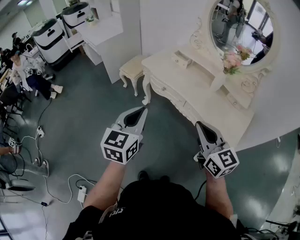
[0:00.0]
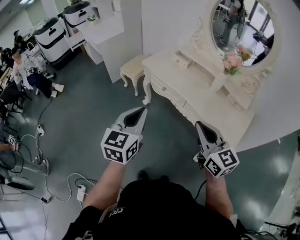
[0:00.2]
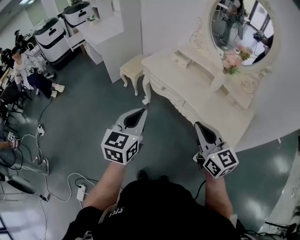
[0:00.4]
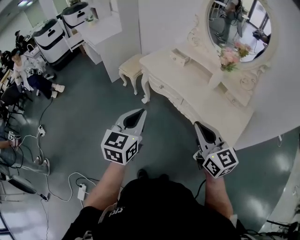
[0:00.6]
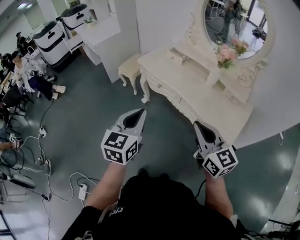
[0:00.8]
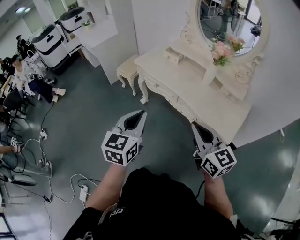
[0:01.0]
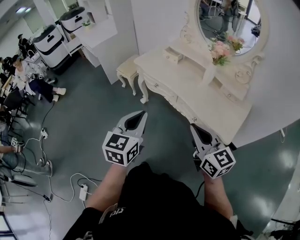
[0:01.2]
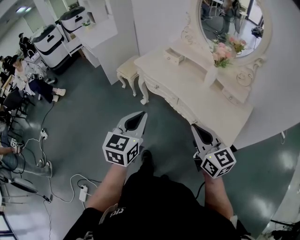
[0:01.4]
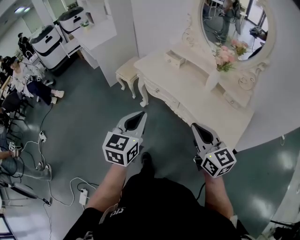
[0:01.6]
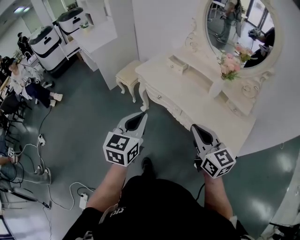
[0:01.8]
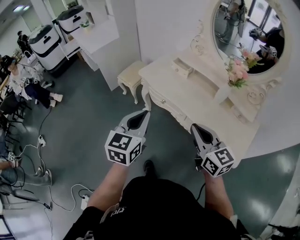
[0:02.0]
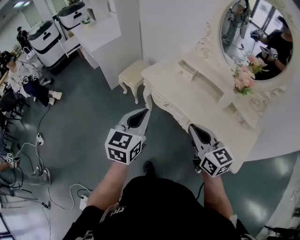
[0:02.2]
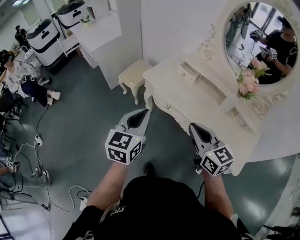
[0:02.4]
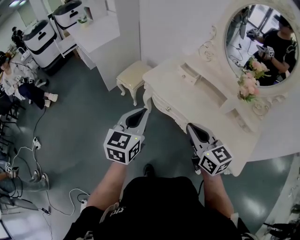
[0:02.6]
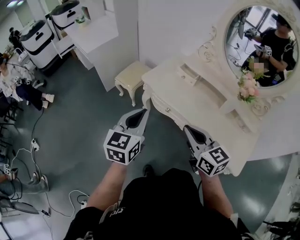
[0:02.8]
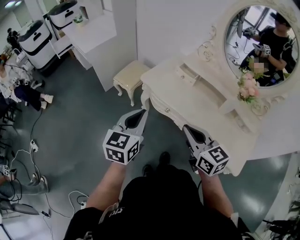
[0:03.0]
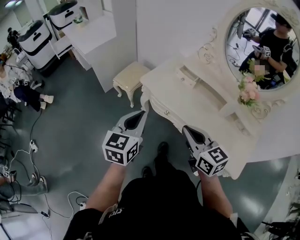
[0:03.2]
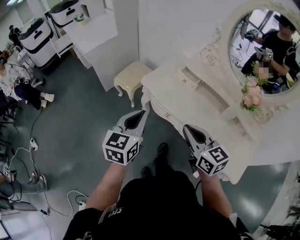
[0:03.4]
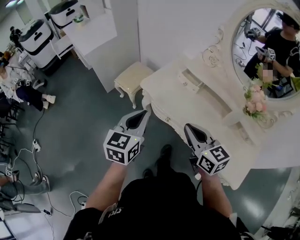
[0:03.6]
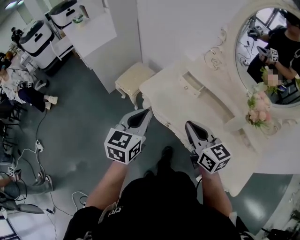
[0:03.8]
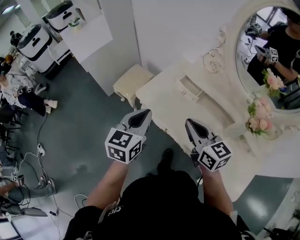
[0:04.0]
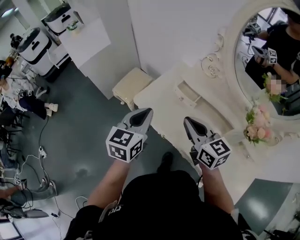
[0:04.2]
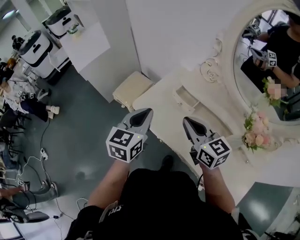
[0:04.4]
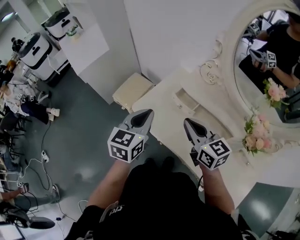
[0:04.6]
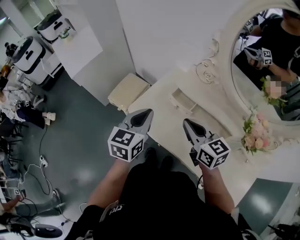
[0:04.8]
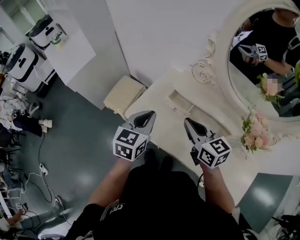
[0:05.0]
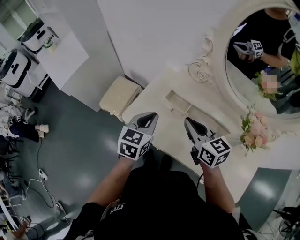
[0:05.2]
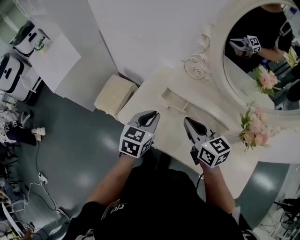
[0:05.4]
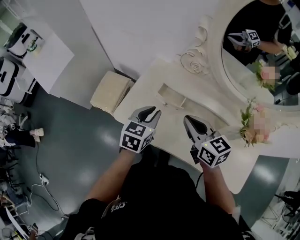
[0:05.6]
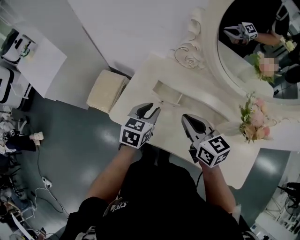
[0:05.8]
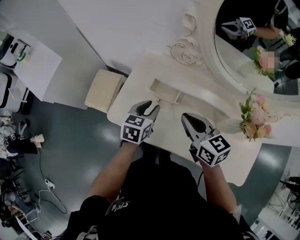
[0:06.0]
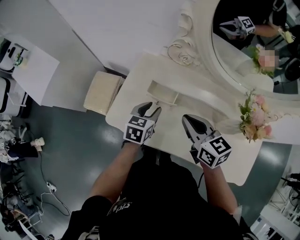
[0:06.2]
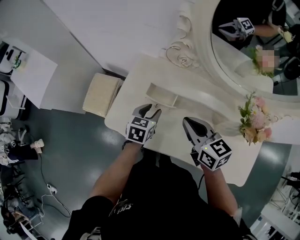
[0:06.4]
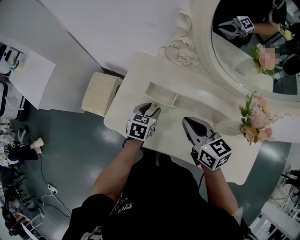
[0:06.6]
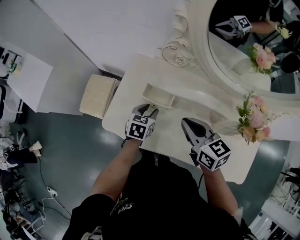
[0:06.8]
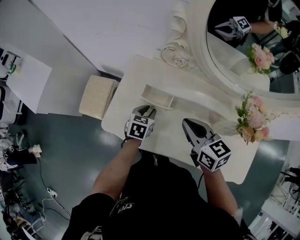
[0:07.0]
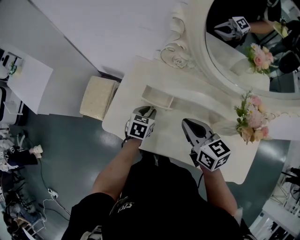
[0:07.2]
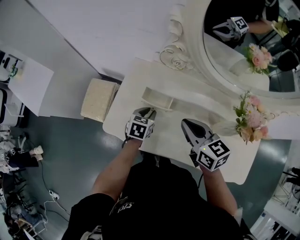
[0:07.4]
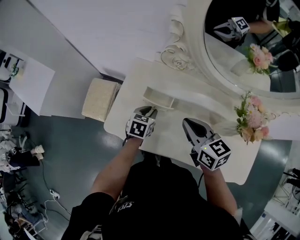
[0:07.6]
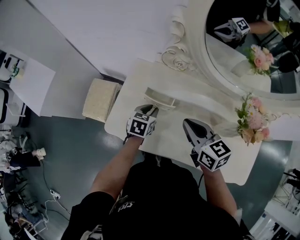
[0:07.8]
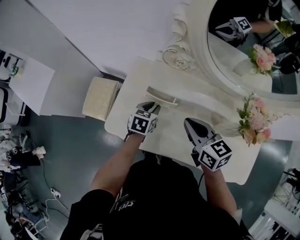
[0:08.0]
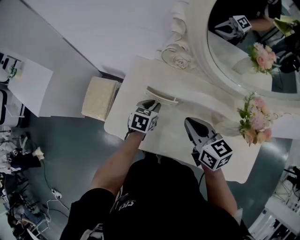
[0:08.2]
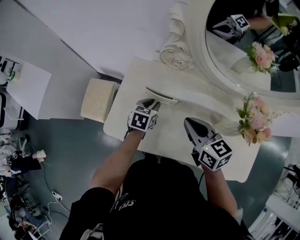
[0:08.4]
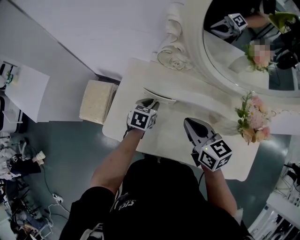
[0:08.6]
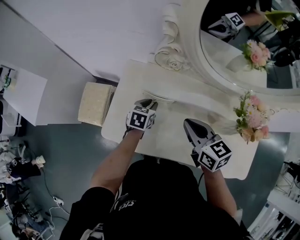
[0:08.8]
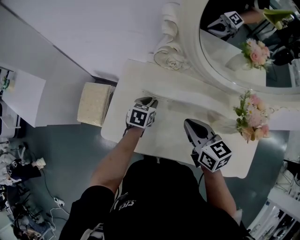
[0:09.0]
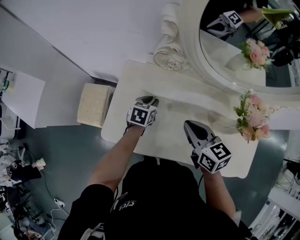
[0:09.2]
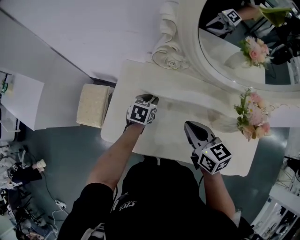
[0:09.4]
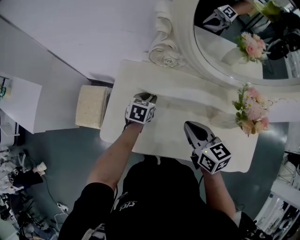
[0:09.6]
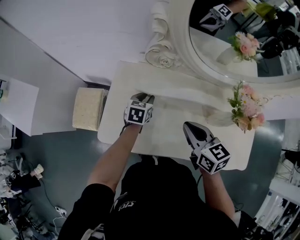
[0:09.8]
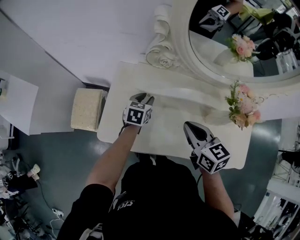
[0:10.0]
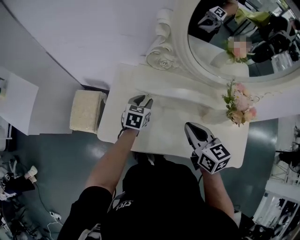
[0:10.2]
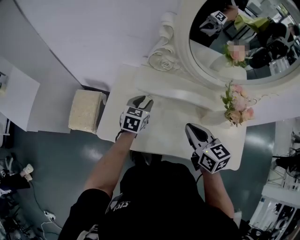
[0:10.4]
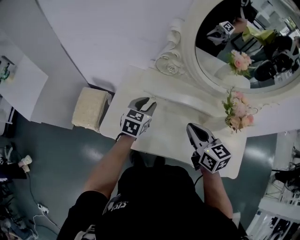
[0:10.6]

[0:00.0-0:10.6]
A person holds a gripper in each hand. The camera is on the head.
0:00.0 to 0:01.6: Both grippers move to the right, roughly 5 cm.
0:01.6 to 0:03.0: Both grippers travel together forward and to the left, about 25 cm.
0:03.0 to 0:04.6: The right gripper travels forward by approximately 25 cm. The left gripper shifts some 25 cm forward and to the right.
0:04.6 to 0:06.0: The right gripper moves to the right and downward, roughly 10 cm, while the left gripper goes roughly 20 cm downward, forward and to the right, turns by approximately 30 degrees, and opens up.
0:06.0 to 0:07.6: The left gripper moves downward, about 10 cm.
0:07.6 to 0:09.0: The left gripper goes some 5 cm forward.
0:09.0 to 0:10.6: The left gripper travels upward by about 10 cm; the right gripper heads backward, covering roughly 5 cm.

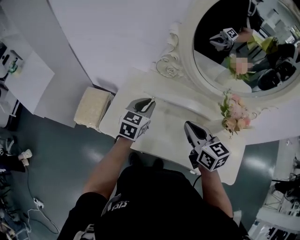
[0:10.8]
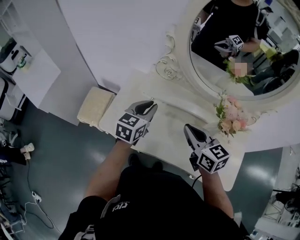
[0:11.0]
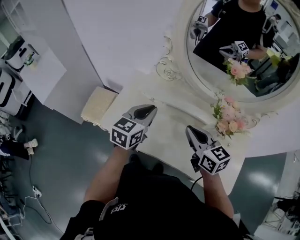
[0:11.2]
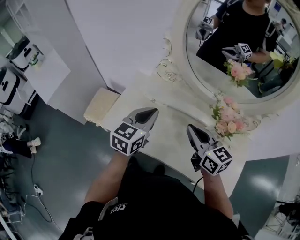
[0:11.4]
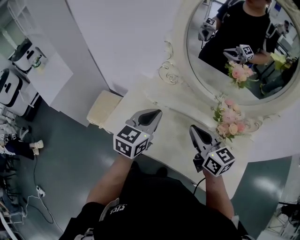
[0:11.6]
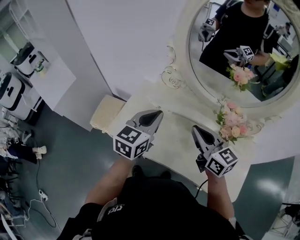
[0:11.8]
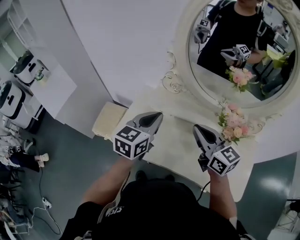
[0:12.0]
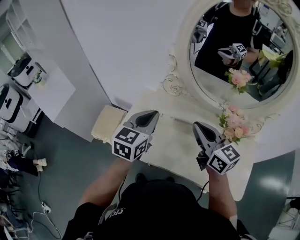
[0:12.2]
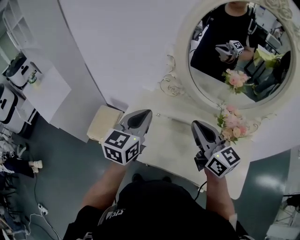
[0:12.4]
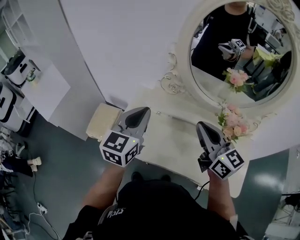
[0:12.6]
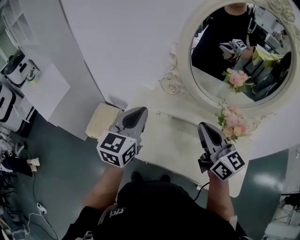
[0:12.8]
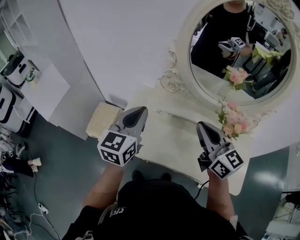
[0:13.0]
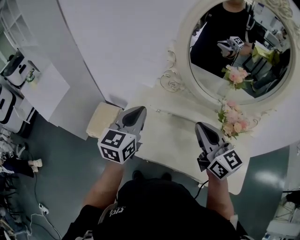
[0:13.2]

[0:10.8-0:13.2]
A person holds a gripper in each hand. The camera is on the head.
0:10.8 to 0:12.0: The left gripper goes about 15 cm upward and backward. Meanwhile the right gripper moves upward, roughly 5 cm.
0:12.0 to 0:13.2: The left gripper travels to the left by about 5 cm. The right gripper changes place by about 5 cm.

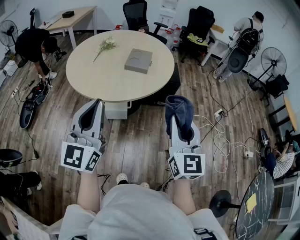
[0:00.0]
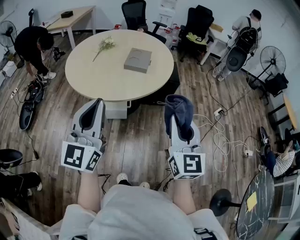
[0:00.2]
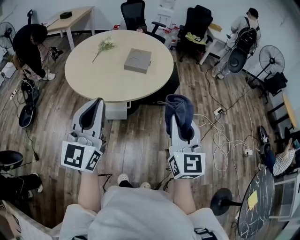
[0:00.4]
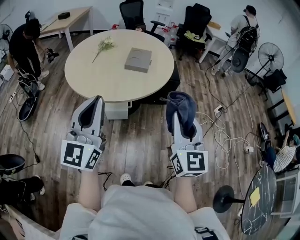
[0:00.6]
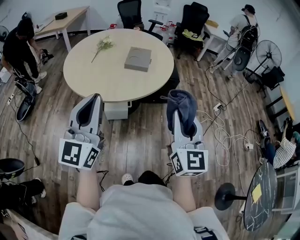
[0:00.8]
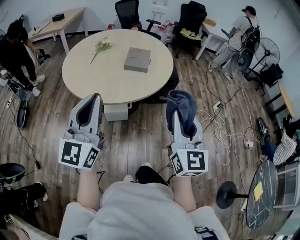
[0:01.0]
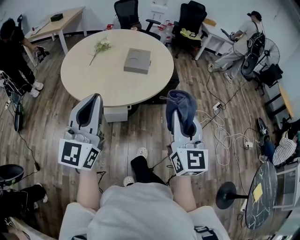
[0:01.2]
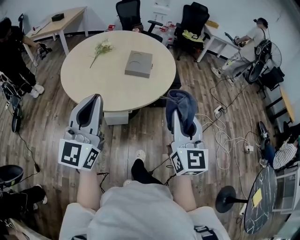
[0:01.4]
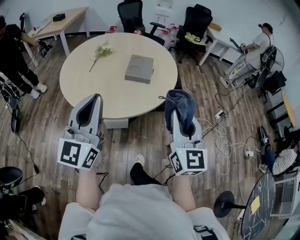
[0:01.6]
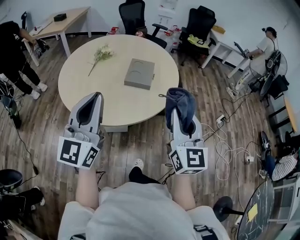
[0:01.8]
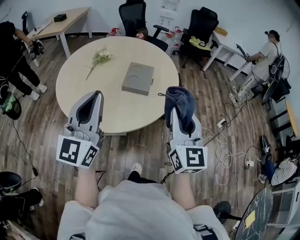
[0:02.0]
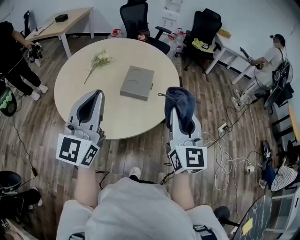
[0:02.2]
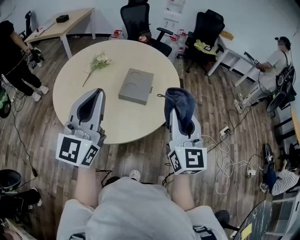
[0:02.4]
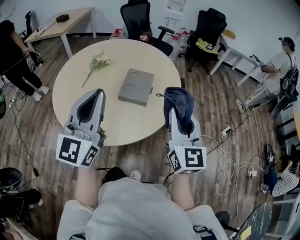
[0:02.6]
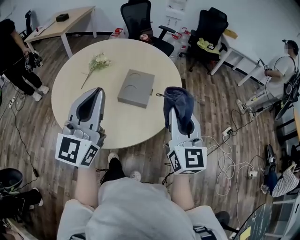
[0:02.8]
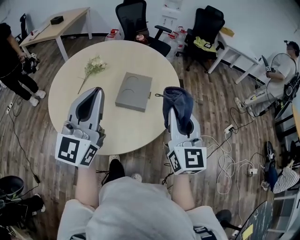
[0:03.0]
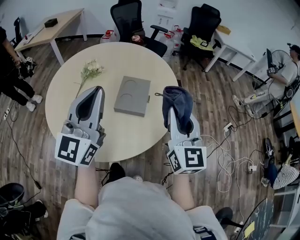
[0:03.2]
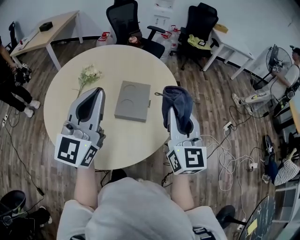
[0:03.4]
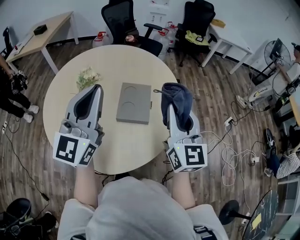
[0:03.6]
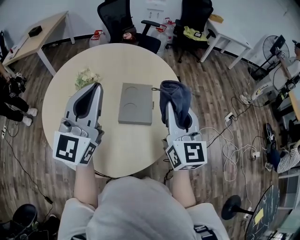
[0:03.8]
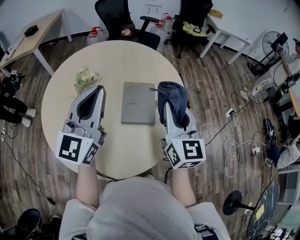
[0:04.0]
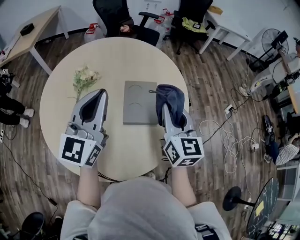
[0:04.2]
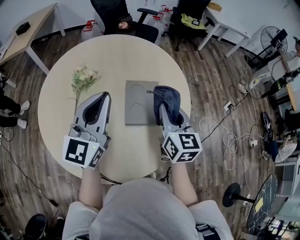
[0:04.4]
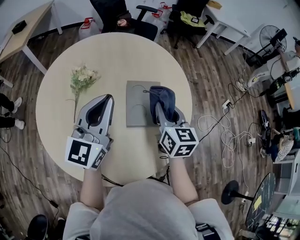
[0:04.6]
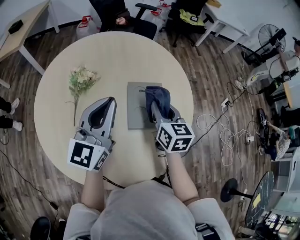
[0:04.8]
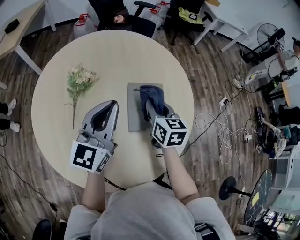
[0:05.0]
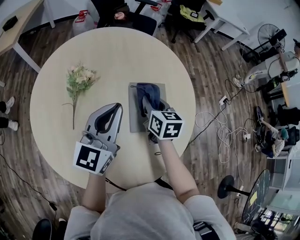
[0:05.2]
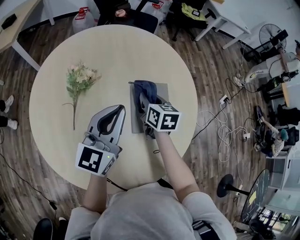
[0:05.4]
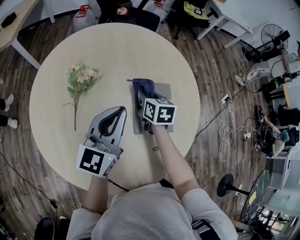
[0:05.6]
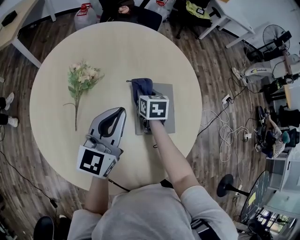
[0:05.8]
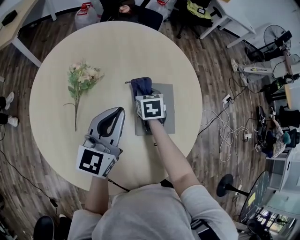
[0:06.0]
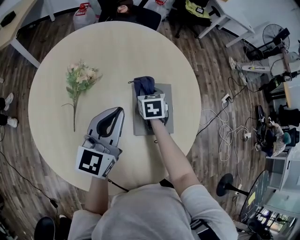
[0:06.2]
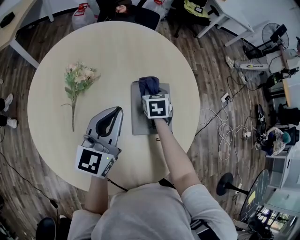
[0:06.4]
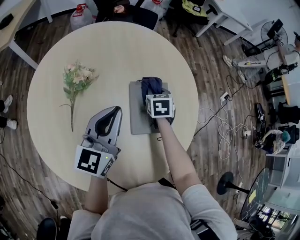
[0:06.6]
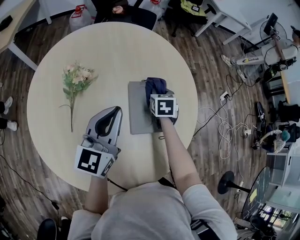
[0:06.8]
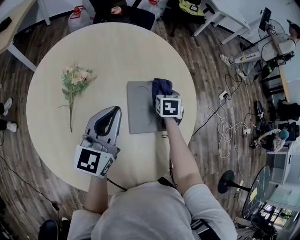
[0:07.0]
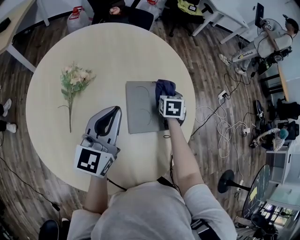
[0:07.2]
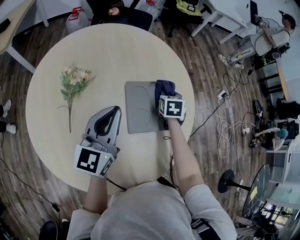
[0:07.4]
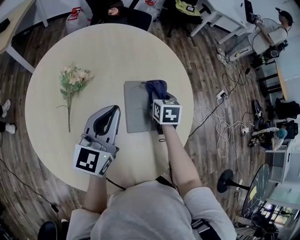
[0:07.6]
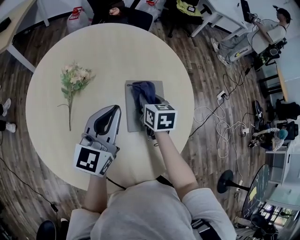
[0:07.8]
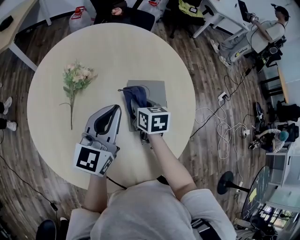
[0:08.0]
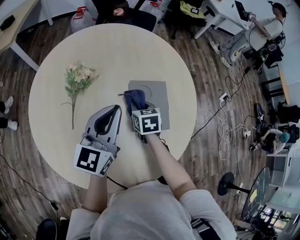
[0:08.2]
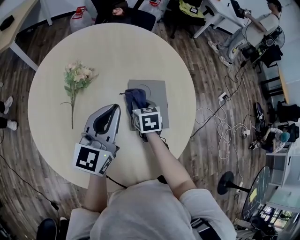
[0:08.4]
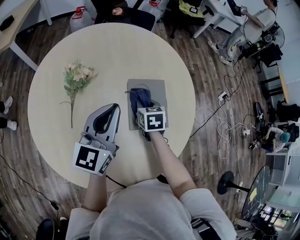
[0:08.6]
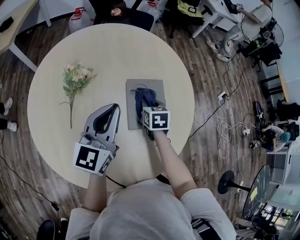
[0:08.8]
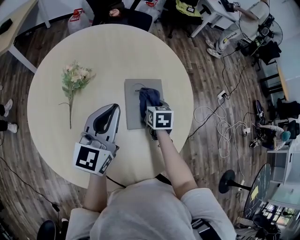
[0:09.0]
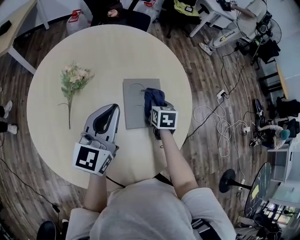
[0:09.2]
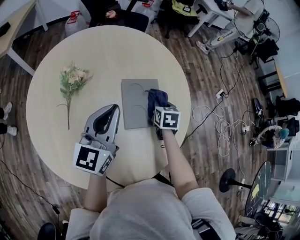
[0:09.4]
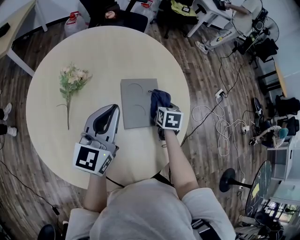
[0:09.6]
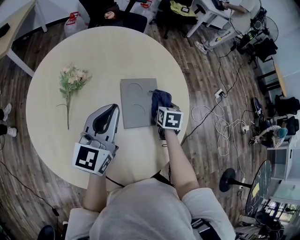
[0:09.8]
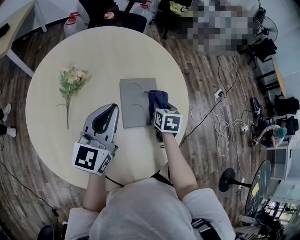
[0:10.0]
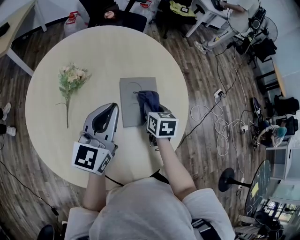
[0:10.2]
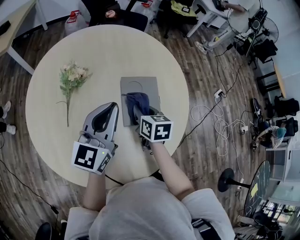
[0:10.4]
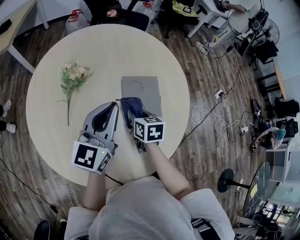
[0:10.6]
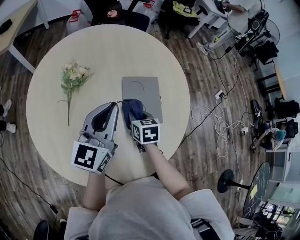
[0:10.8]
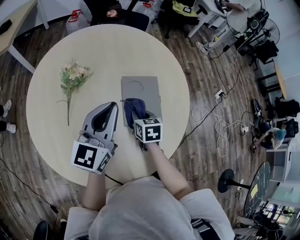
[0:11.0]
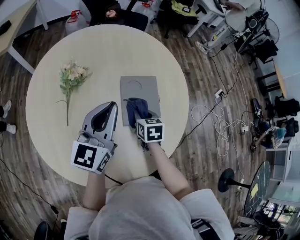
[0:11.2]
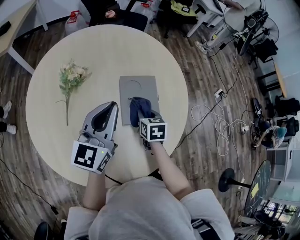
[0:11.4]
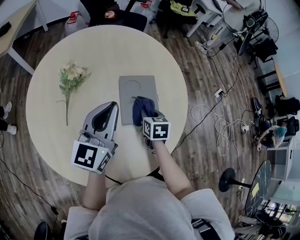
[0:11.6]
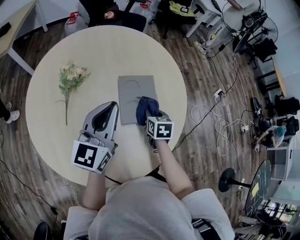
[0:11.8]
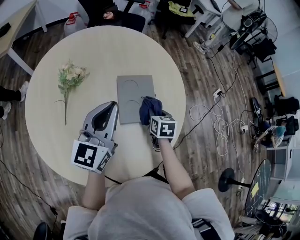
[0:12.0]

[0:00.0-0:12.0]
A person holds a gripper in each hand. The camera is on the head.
0:00.0 to 0:01.6: The two grippers go some 15 cm forward and to the left.
0:01.6 to 0:03.0: The grippers both shift forward by some 25 cm.
0:03.0 to 0:04.4: The right gripper heads forward, to the left and downward, covering roughly 25 cm, and swivels roughly 20 degrees, while the left gripper goes approximately 20 cm forward and to the left.
0:04.4 to 0:06.0: The right gripper heads downward, forward and to the left, covering approximately 30 cm, and tips its fingers downward by some 40 degrees, while the left gripper is displaced downward and forward by some 15 cm.
0:06.0 to 0:07.6: The right gripper moves to the right, some 10 cm.
0:07.6 to 0:09.0: The right gripper reaches approximately 10 cm to the left, then returns.
0:09.0 to 0:10.4: The right gripper moves backward and upward, approximately 10 cm, and moves roughly 10 cm to the right and comes back.
0:10.4 to 0:12.0: The right gripper is displaced to the right and downward by roughly 10 cm.
